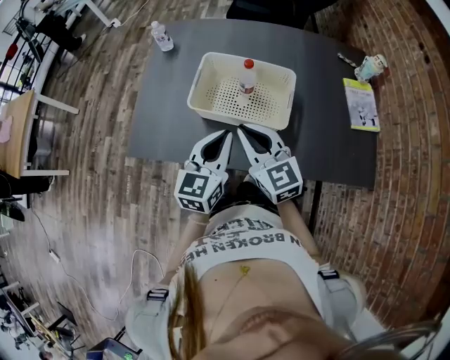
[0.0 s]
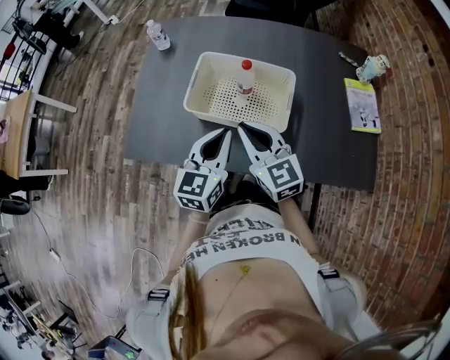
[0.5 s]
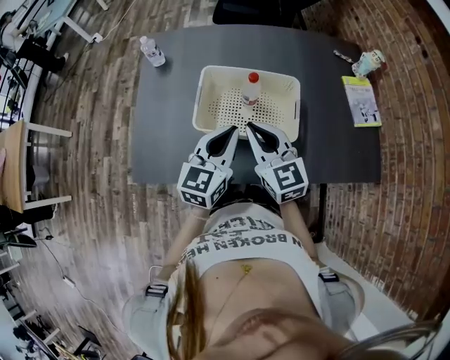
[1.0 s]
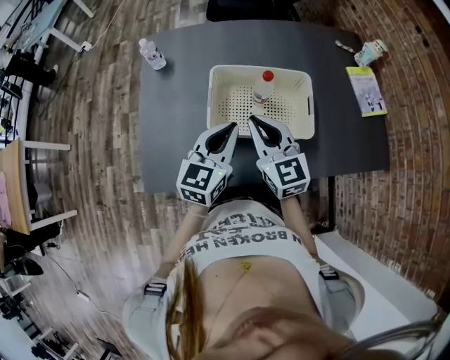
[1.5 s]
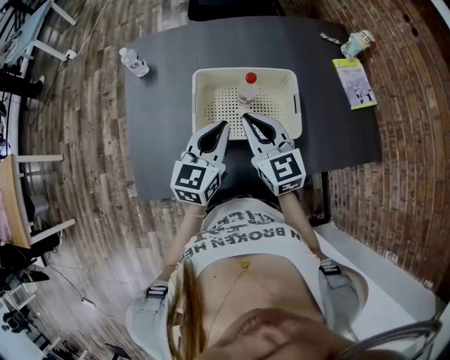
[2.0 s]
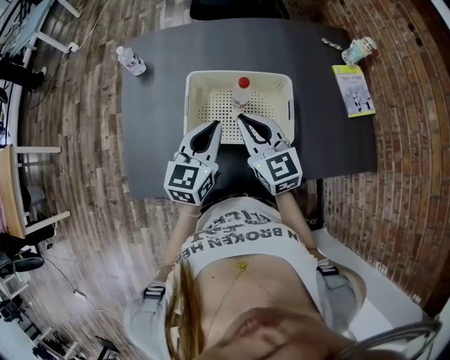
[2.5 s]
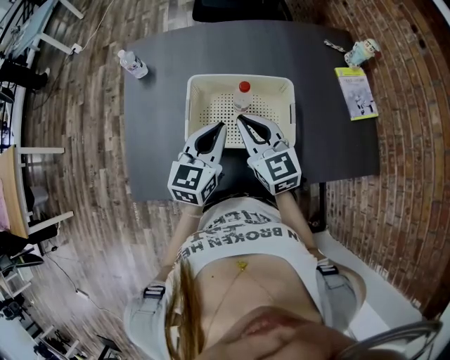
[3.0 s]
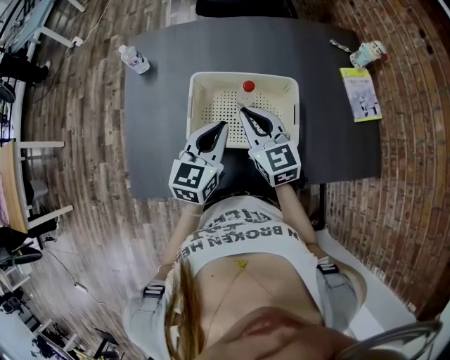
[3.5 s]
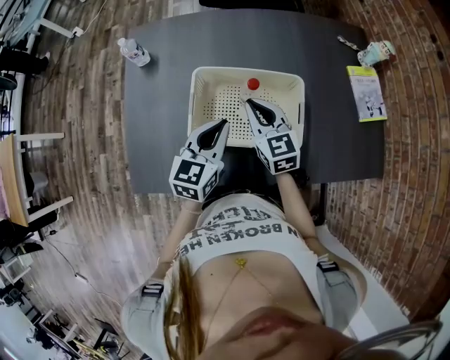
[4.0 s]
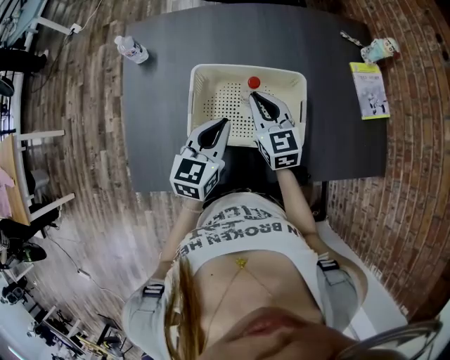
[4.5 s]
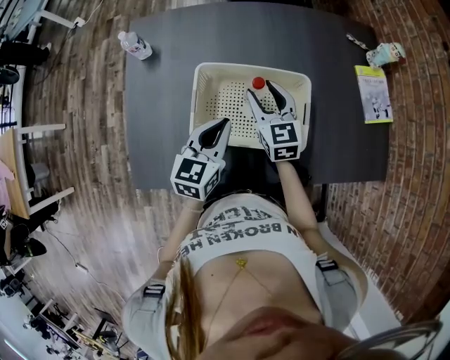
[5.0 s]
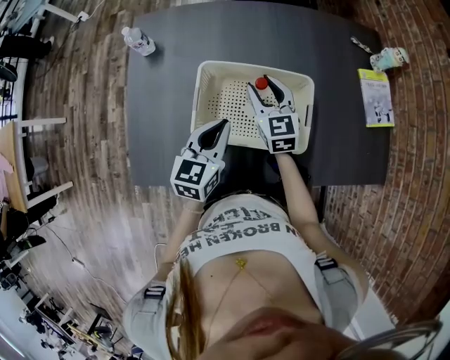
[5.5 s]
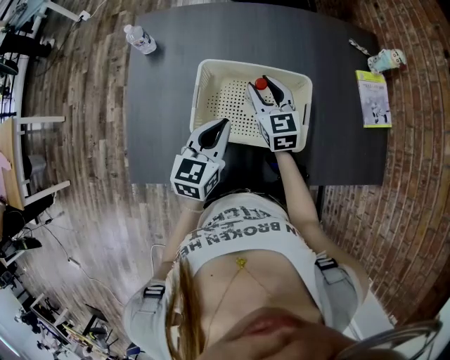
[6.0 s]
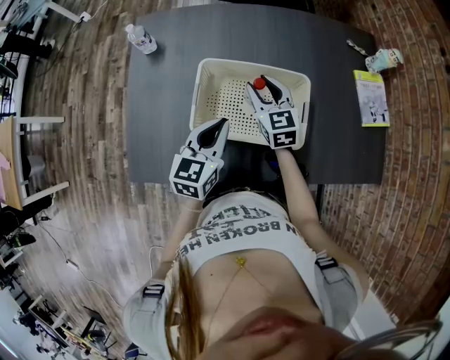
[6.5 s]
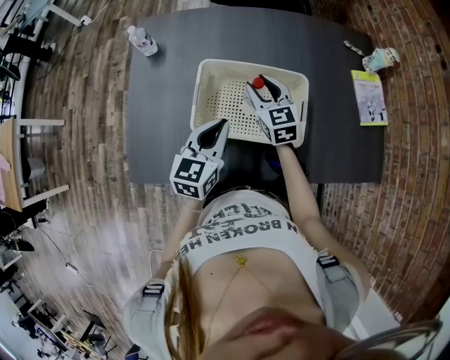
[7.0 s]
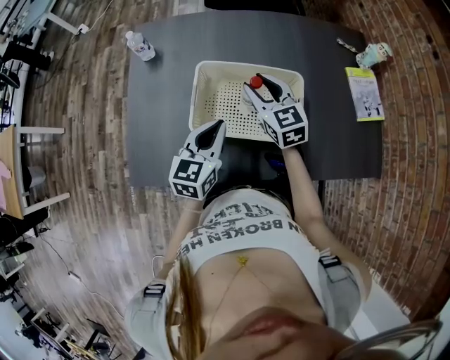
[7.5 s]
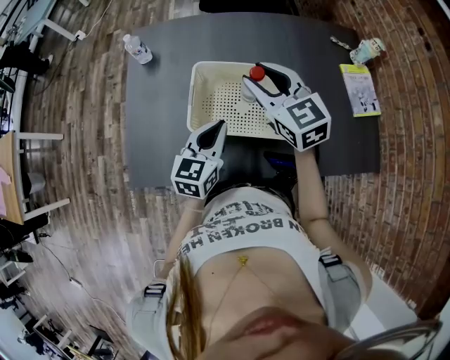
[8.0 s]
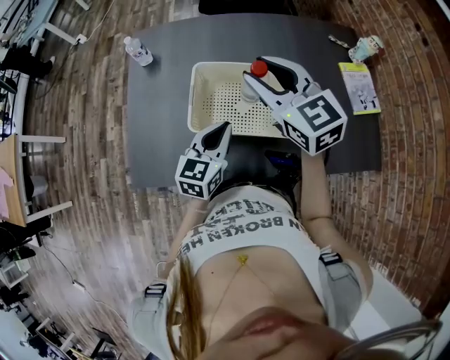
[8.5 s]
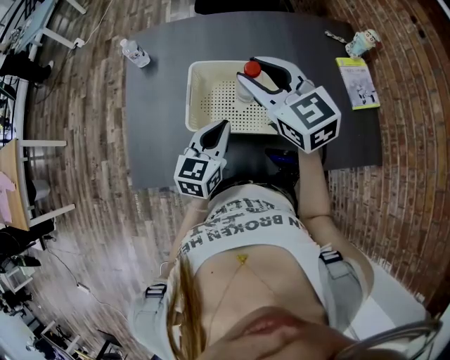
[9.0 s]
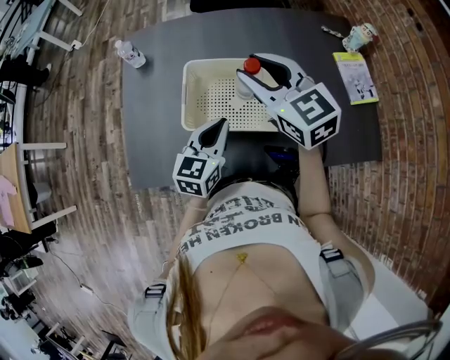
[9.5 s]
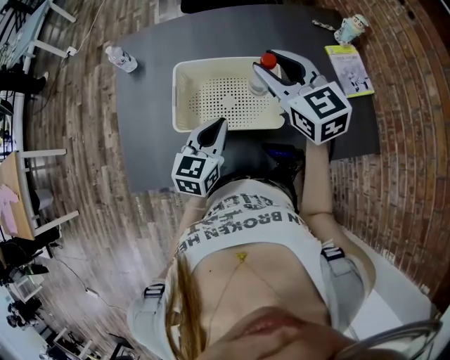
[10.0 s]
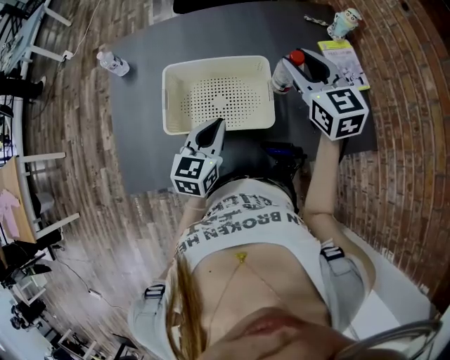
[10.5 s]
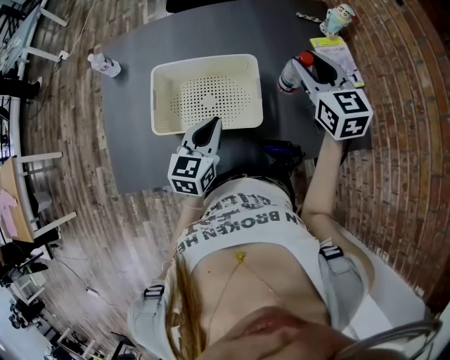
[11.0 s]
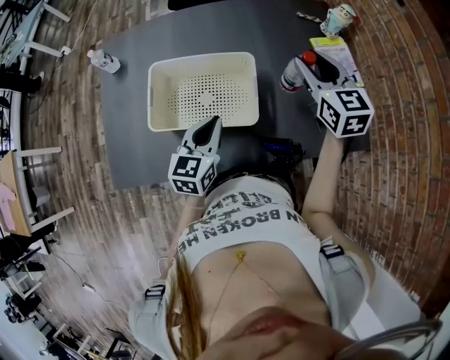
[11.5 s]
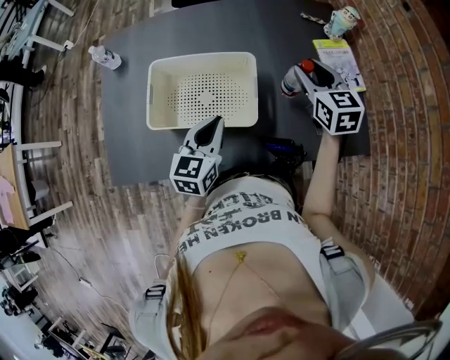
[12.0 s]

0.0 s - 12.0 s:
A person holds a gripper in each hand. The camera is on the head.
0.0 s - 2.0 s: The right gripper goes approximately 10 cm forward. Meanwhile the left gripper is displaced forward and to the left by about 15 cm.
2.0 s - 4.0 s: The right gripper heads forward and downward, covering approximately 10 cm. Meanwhile the left gripper changes place by roughly 5 cm.
4.0 s - 6.0 s: The right gripper is displaced forward by roughly 5 cm, and opens its fingers.
6.0 s - 8.0 s: The right gripper travels upward by about 15 cm.
8.0 s - 10.0 s: The left gripper shifts roughly 5 cm to the right. Meanwhile the right gripper travels to the right by approximately 10 cm.
10.0 s - 12.0 s: The left gripper is displaced to the right by some 10 cm. The right gripper heads to the right and downward, covering about 25 cm.

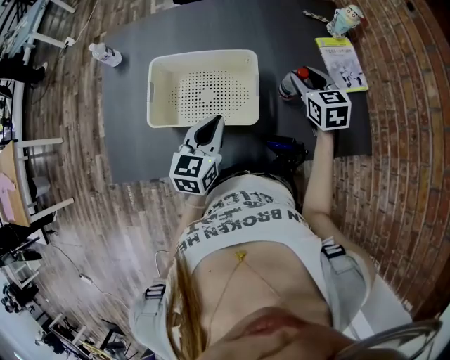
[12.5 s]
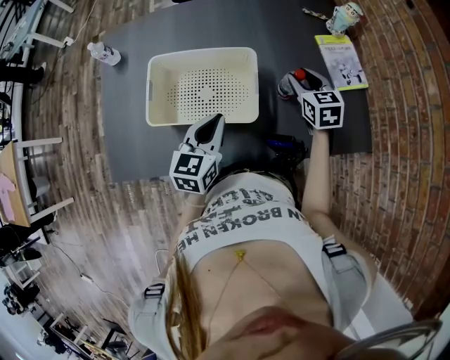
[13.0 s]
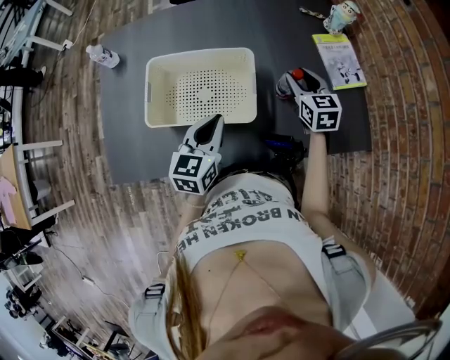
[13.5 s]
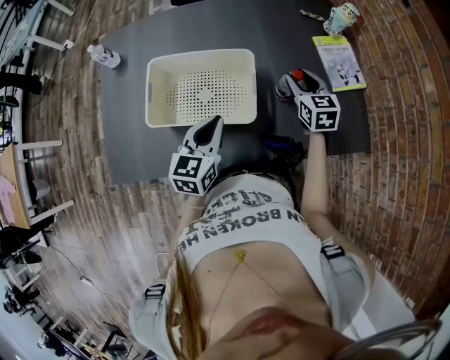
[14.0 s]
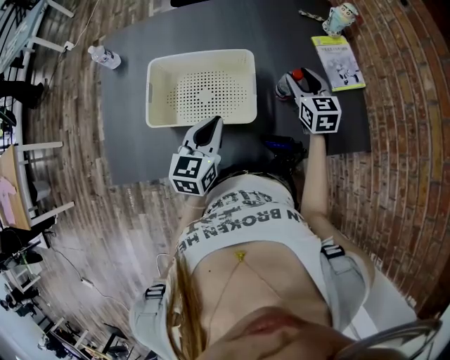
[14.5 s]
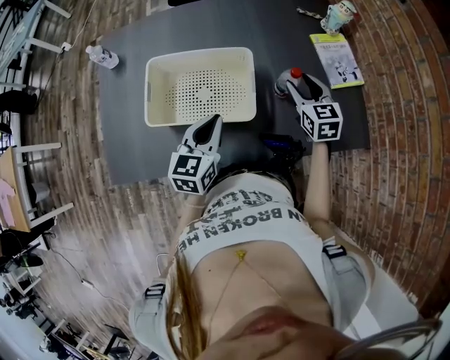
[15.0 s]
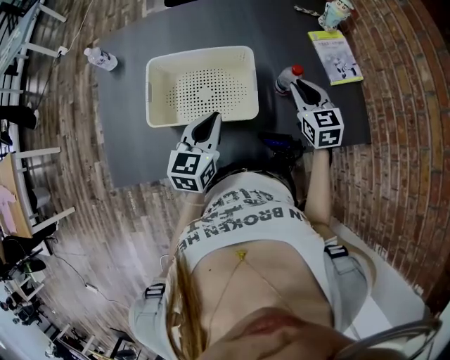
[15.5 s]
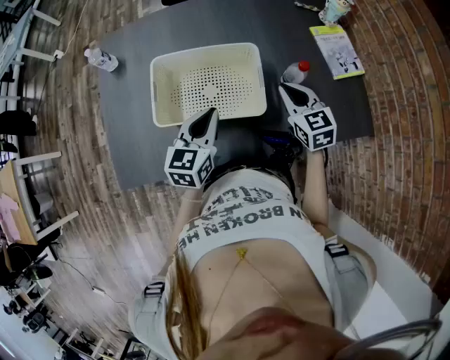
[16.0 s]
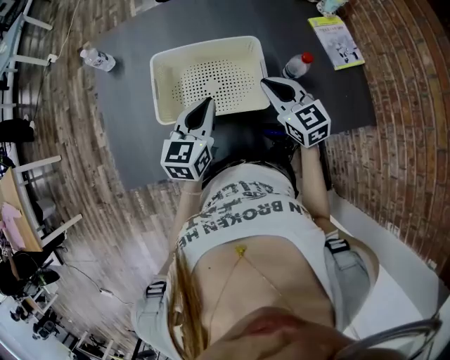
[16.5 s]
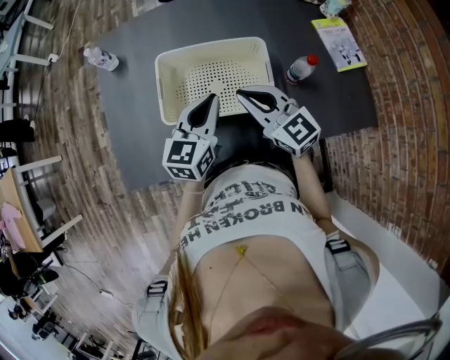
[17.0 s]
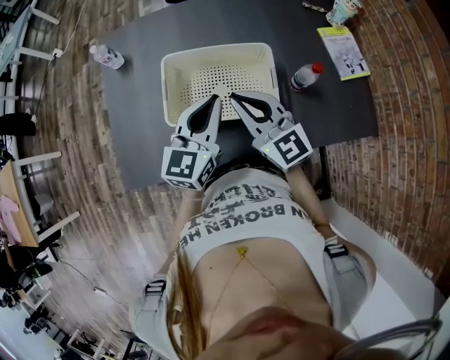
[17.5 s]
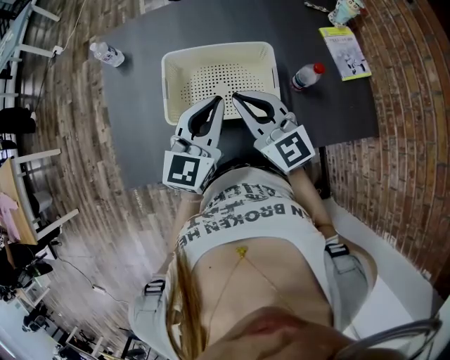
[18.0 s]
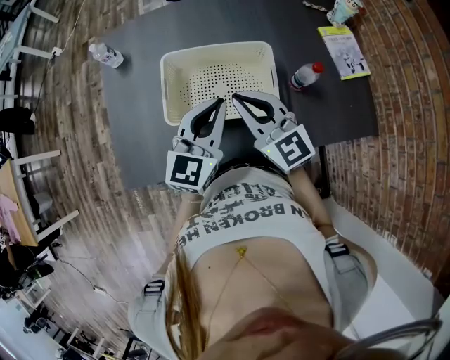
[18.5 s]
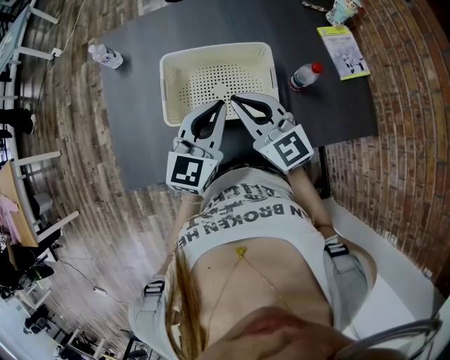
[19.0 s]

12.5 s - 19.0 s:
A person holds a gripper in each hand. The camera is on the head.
12.5 s - 14.5 s: The grippers make only small movements.
14.5 s - 17.0 s: The left gripper travels to the left by about 10 cm. Meanwhile the right gripper moves to the left and backward, some 25 cm, changes its angle by approximately 30 degrees, and closes.
17.0 s - 19.0 s: The left gripper shifts by roughly 5 cm.

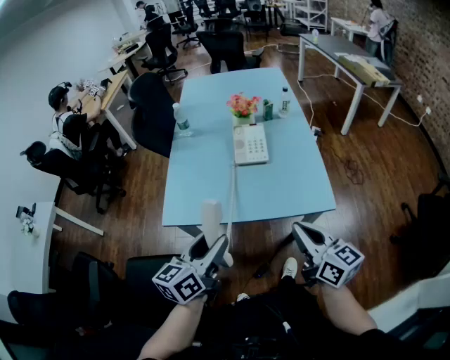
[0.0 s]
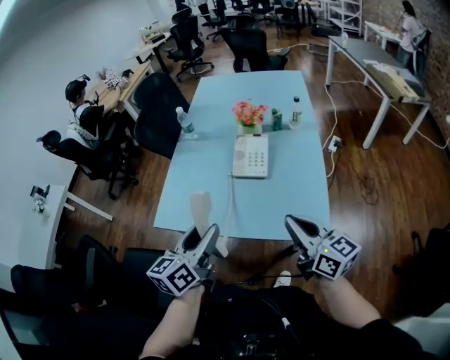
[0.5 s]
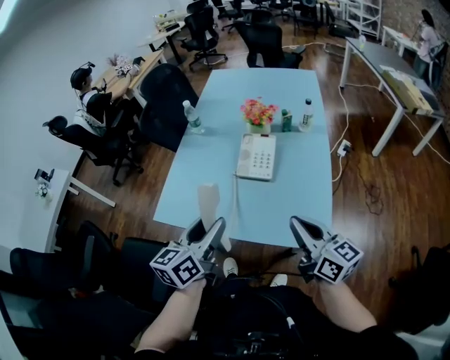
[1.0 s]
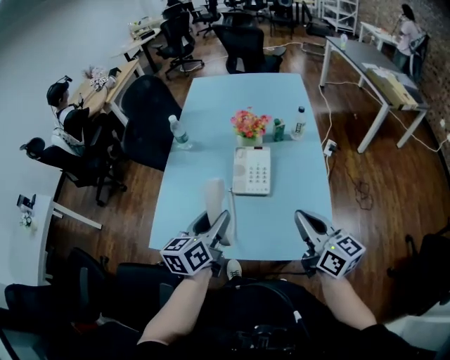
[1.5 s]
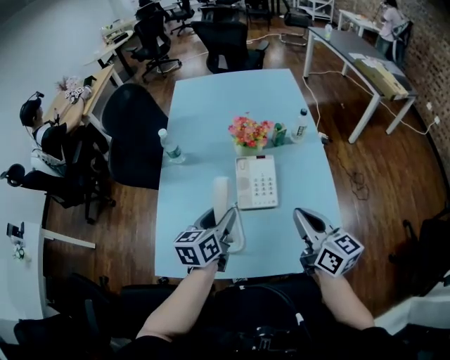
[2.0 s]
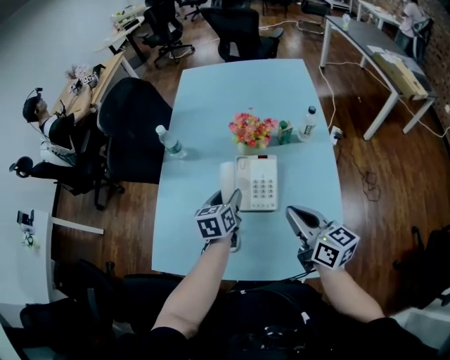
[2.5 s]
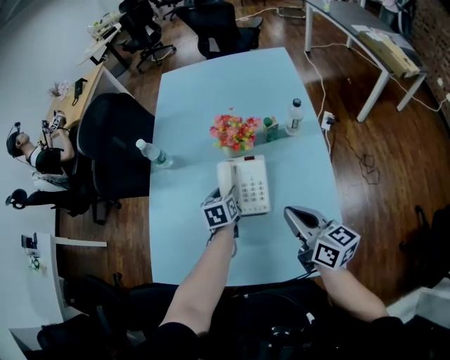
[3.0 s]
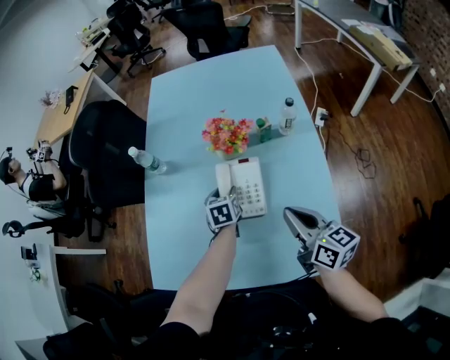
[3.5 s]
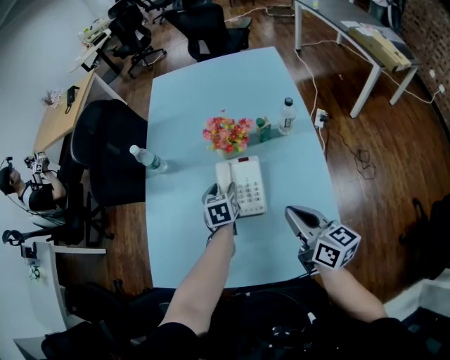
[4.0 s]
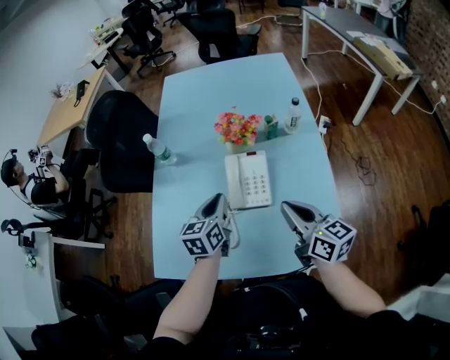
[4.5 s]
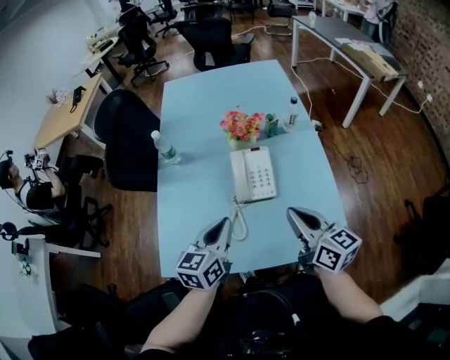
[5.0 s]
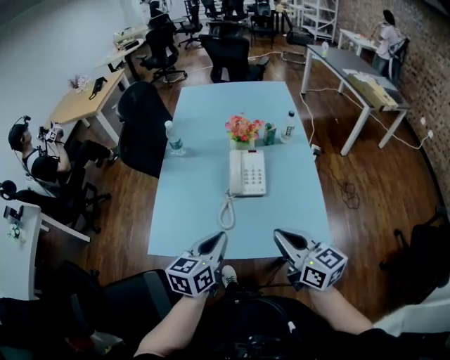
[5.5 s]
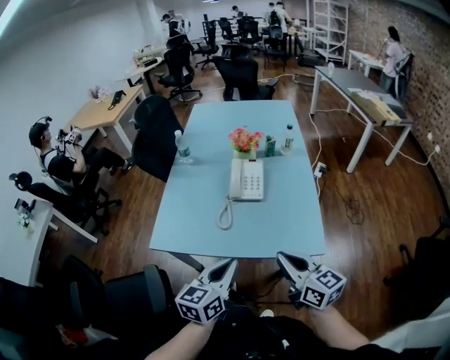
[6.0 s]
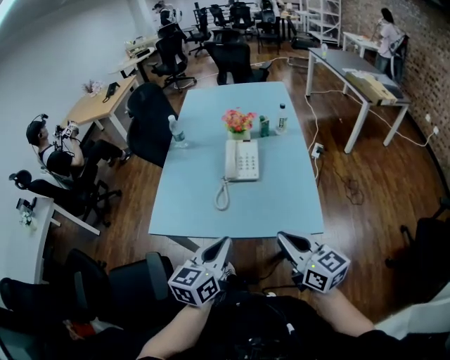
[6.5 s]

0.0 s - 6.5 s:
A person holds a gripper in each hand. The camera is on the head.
0.0 s - 2.0 s: Both grippers travel together forward, about 30 cm.
2.0 s - 4.5 s: The left gripper heads forward, covering roughly 5 cm, reaches approximately 15 cm downward, then returns, and closes up.
4.5 s - 6.5 s: The grippers both shift backward by about 35 cm.

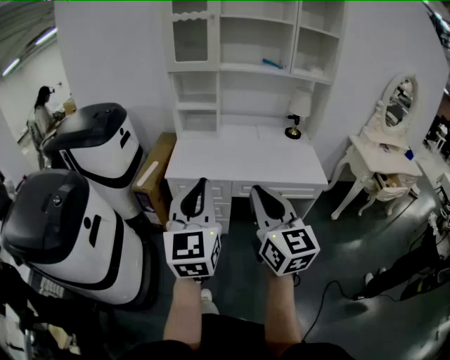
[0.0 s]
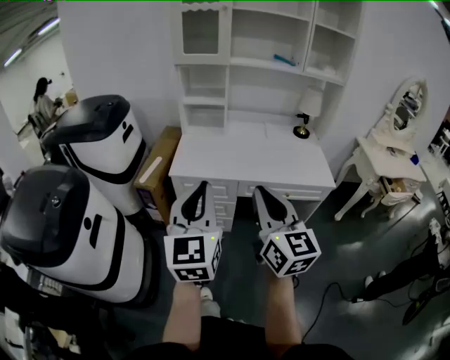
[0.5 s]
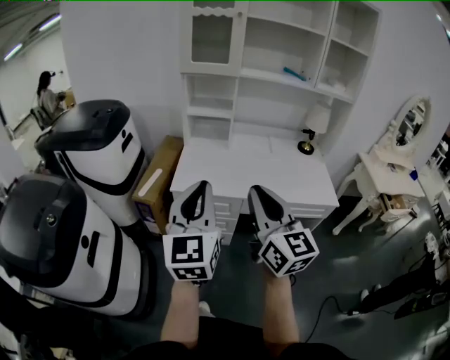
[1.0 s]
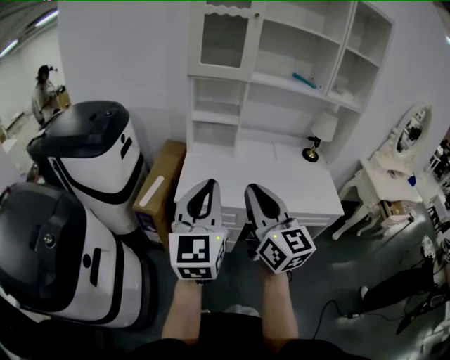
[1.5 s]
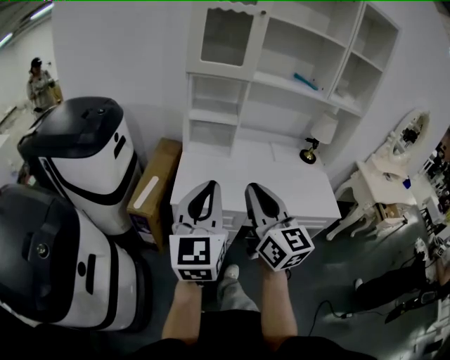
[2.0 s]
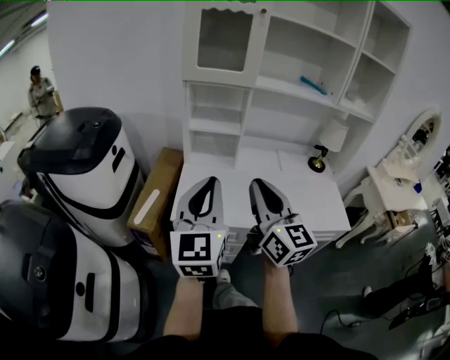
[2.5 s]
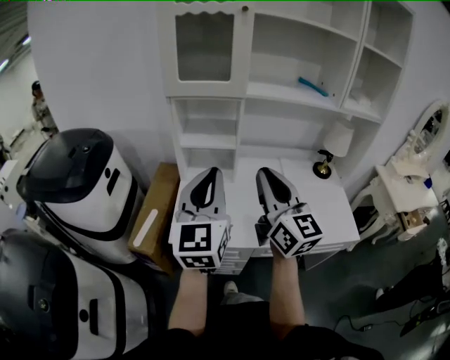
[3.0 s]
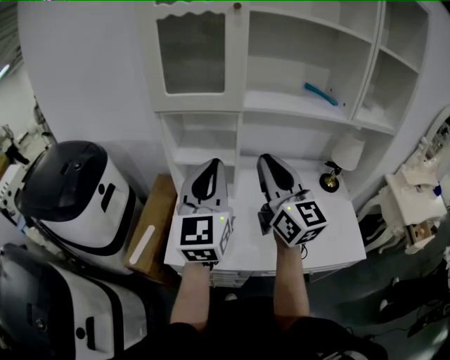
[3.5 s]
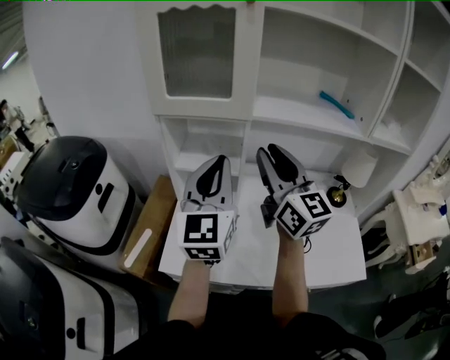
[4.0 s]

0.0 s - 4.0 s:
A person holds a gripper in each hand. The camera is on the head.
0.0 s - 2.0 s: Both grippers move forward and to the left, some 30 cm.
2.0 s - 4.0 s: Both grippers travel together forward, roughly 40 cm. The right gripper opens.
